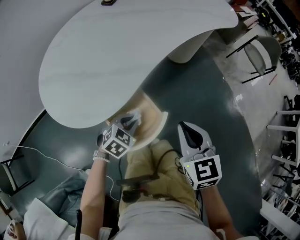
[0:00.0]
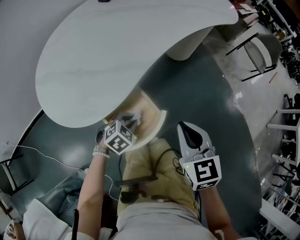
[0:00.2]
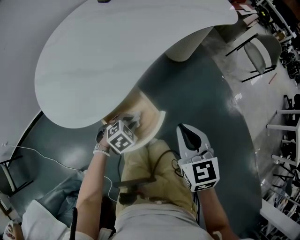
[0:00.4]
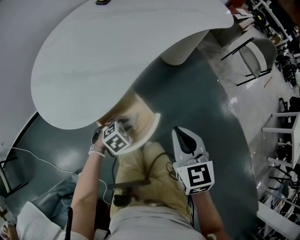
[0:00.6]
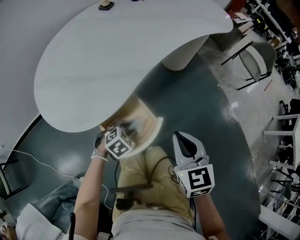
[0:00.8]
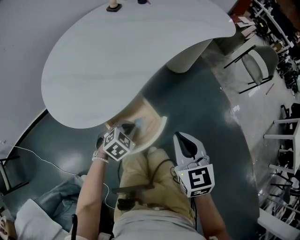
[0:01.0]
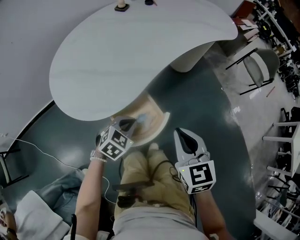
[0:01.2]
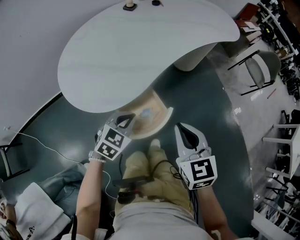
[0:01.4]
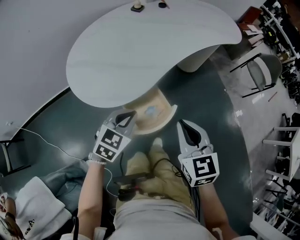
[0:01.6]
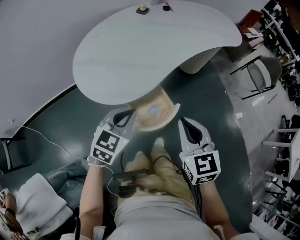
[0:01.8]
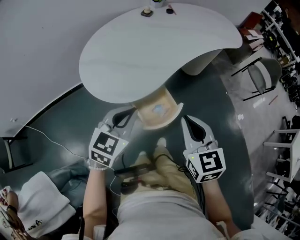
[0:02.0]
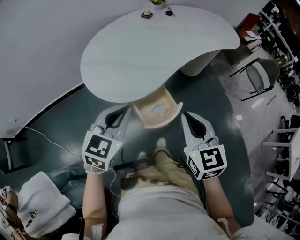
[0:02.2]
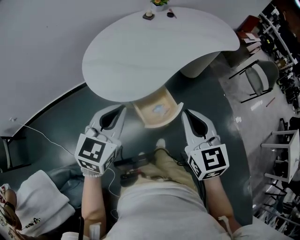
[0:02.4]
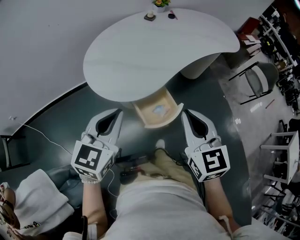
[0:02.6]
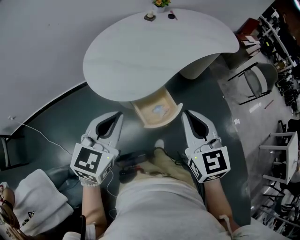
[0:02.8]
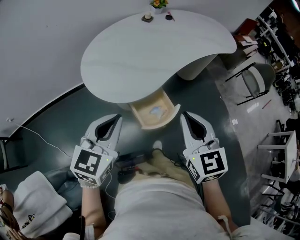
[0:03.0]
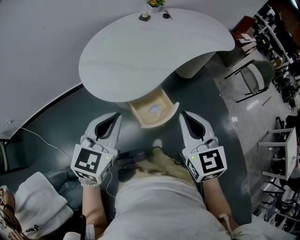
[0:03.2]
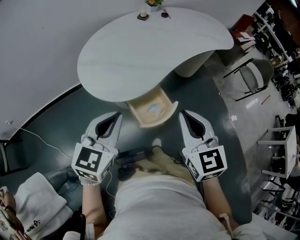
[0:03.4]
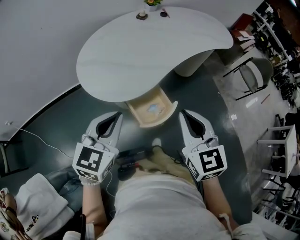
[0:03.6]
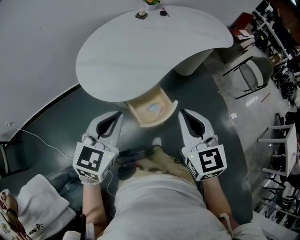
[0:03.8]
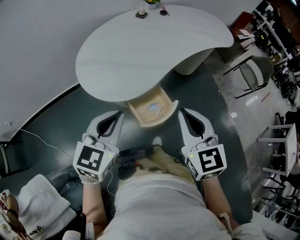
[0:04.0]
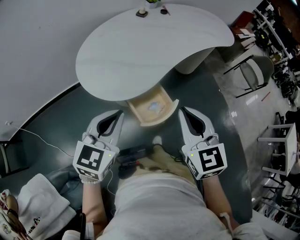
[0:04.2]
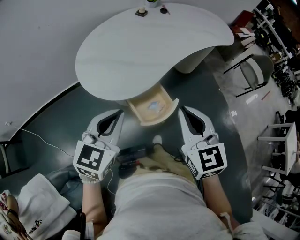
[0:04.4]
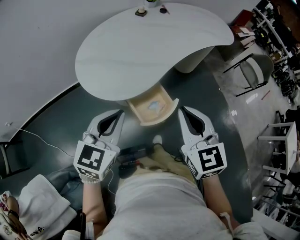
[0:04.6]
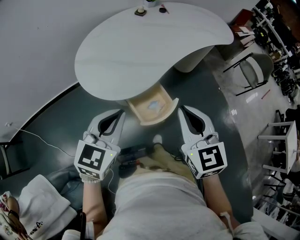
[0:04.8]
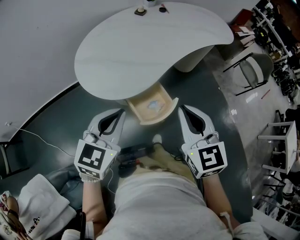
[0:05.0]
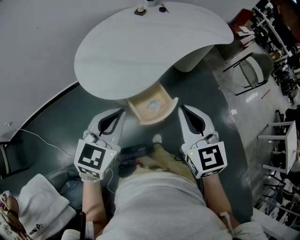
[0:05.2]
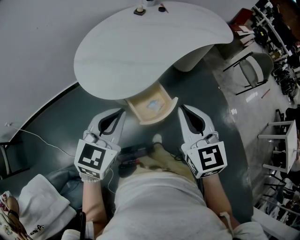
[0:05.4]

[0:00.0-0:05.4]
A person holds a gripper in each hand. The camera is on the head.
0:00.0 to 0:01.4: The right gripper shifts roughly 5 cm upward. The left gripper heads upward, covering some 10 cm.
0:01.4 to 0:02.8: The left gripper goes approximately 25 cm upward, to the left and backward, and swivels roughly 30 degrees, while the right gripper travels upward and to the left by about 15 cm.
0:02.8 to 0:04.0: The grippers move only a little.
0:04.0 to 0:05.4: The two grippers keep their place.

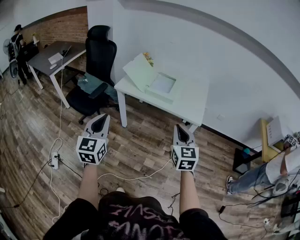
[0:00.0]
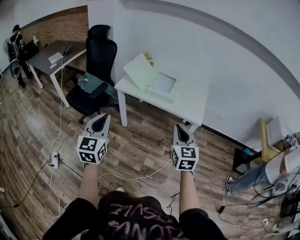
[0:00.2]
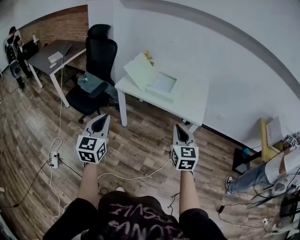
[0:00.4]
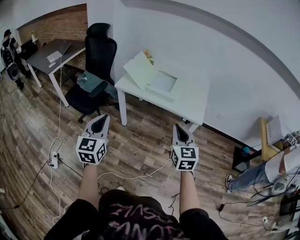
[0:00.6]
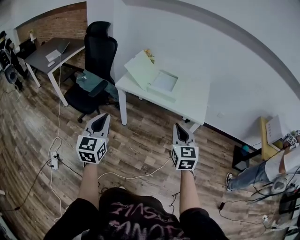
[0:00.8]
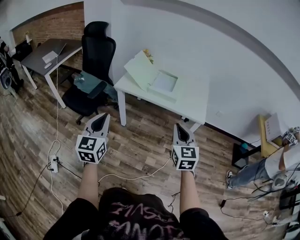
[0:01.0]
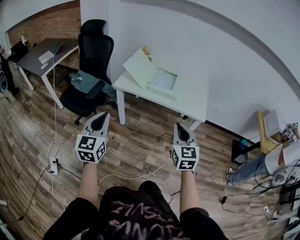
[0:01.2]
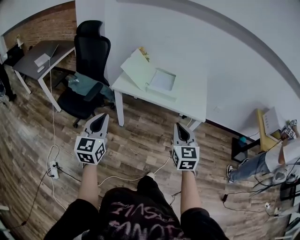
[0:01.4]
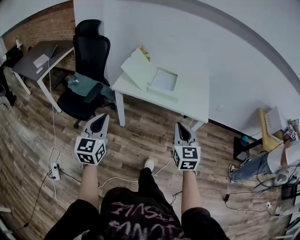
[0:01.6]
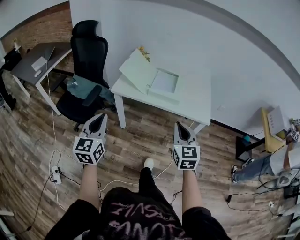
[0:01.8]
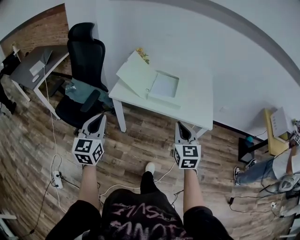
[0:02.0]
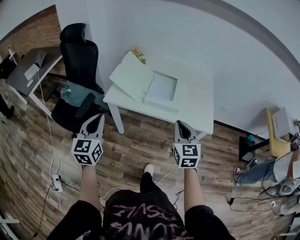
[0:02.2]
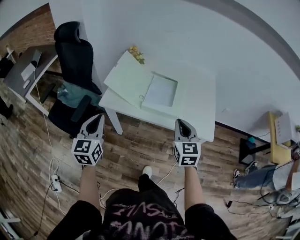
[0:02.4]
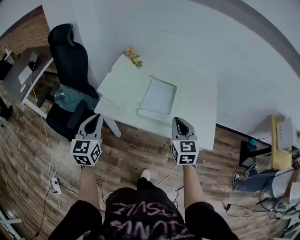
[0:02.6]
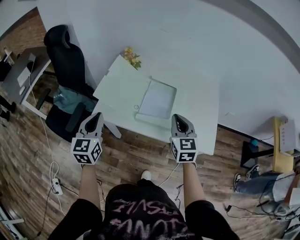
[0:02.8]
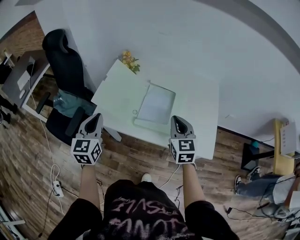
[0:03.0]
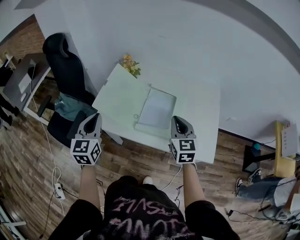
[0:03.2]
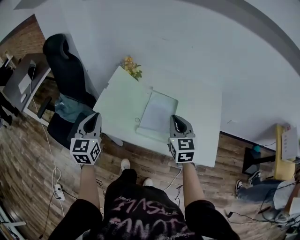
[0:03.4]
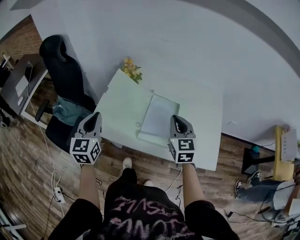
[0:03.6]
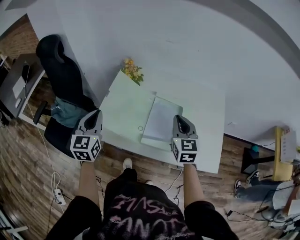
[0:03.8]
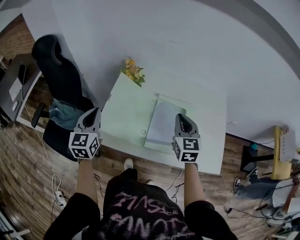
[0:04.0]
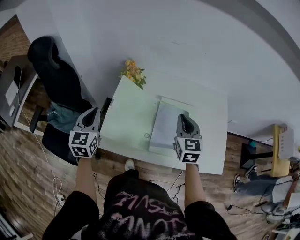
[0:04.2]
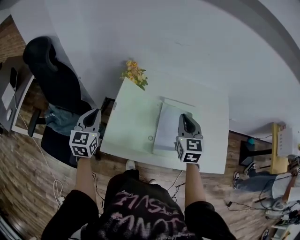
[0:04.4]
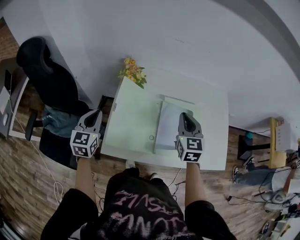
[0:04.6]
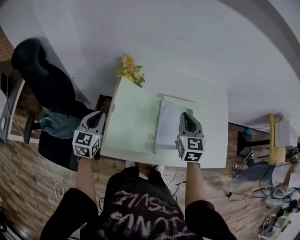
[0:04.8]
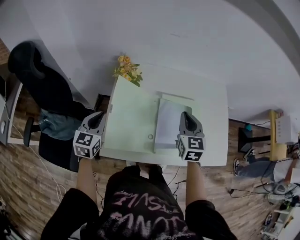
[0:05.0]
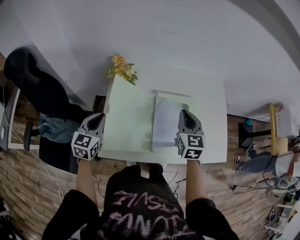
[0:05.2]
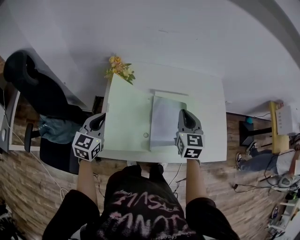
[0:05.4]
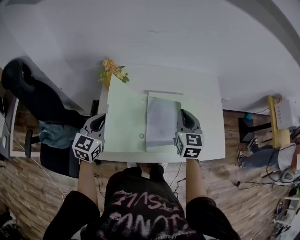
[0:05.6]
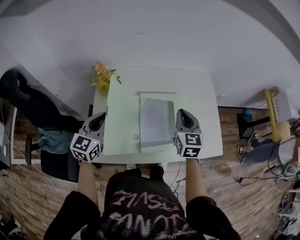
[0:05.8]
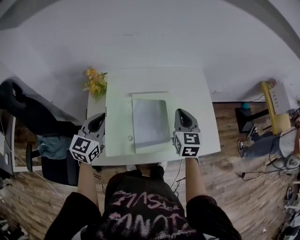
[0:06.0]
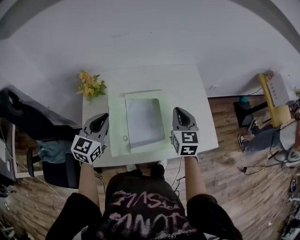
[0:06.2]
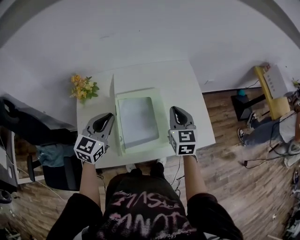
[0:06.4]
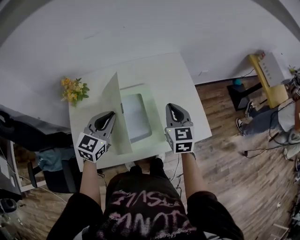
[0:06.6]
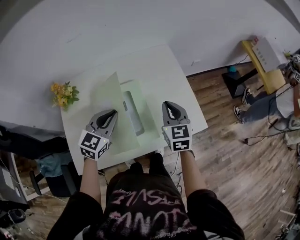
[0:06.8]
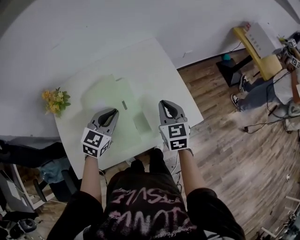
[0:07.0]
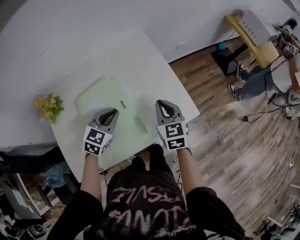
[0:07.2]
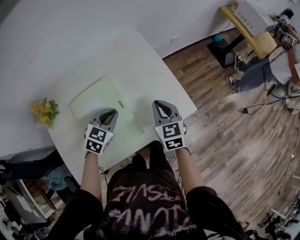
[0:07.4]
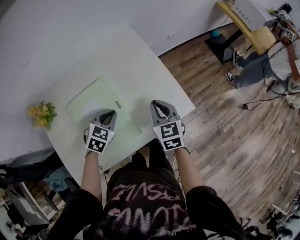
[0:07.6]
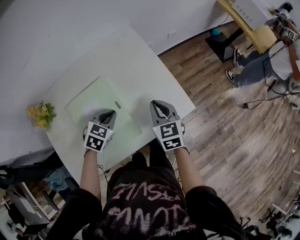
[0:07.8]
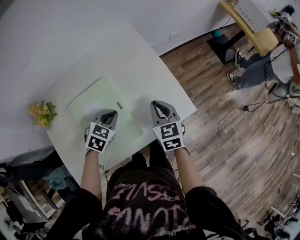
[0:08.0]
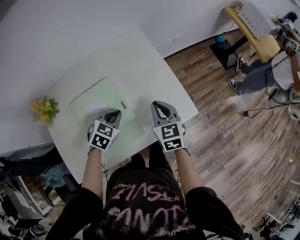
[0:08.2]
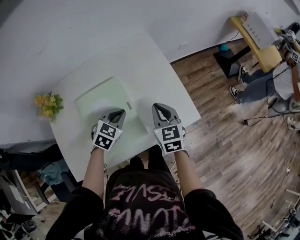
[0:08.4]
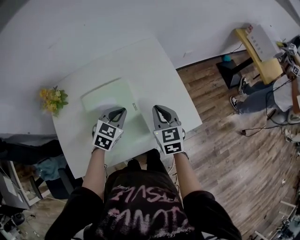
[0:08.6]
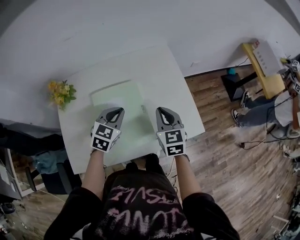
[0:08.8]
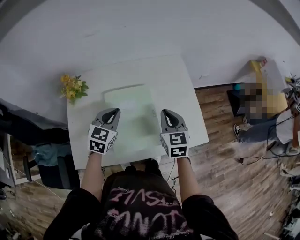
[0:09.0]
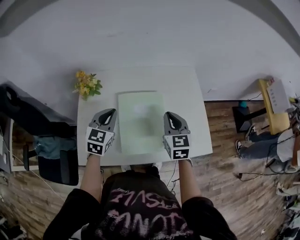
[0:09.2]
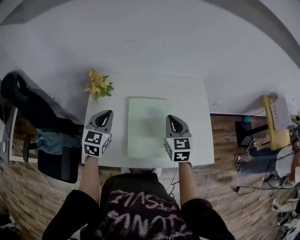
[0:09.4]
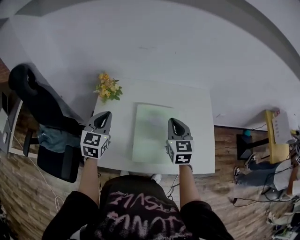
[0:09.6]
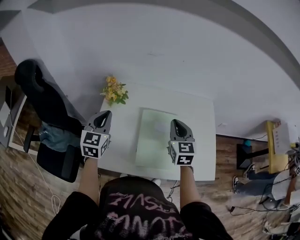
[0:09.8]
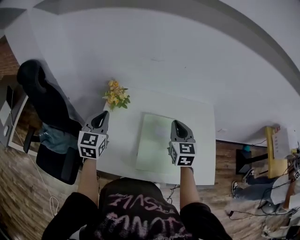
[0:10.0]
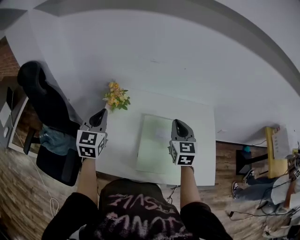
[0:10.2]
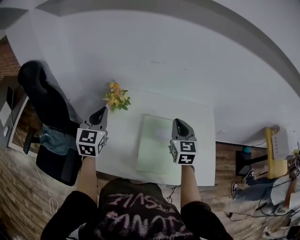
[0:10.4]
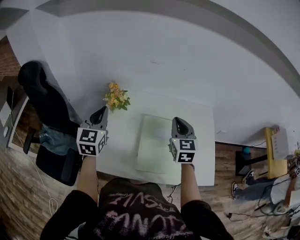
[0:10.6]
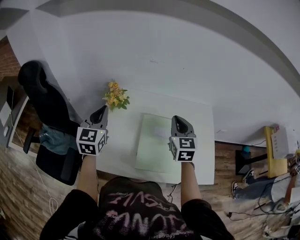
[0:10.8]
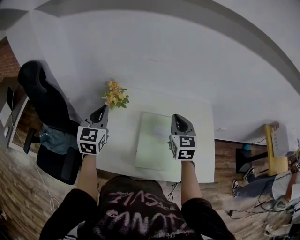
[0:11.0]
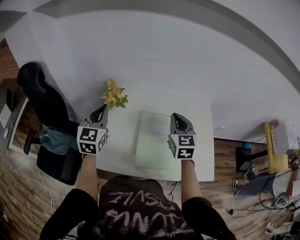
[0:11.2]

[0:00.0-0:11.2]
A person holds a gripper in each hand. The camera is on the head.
0:00.0 to 0:01.6: The right gripper is displaced to the left and forward by about 10 cm; the left gripper moves forward and to the left, approximately 15 cm.
0:01.6 to 0:03.2: Both grippers move forward, about 40 cm.
0:03.2 to 0:04.8: The left gripper heads forward, to the left and downward, covering some 25 cm, and rotates approximately 20 degrees; the right gripper shifts approximately 20 cm forward and to the left.
0:04.8 to 0:06.4: Both grippers travel together to the right, about 25 cm. The left gripper turns by roughly 30 degrees.
0:06.4 to 0:08.0: The left gripper moves to the right, downward and forward, roughly 30 cm, and tips its fingers downward by some 40 degrees, while the right gripper shifts approximately 20 cm to the right and downward.
0:08.0 to 0:09.6: The left gripper shifts by approximately 40 cm, and angles its fingers upward, by approximately 30 degrees; the right gripper moves some 25 cm, and rotates approximately 20 degrees.
0:09.6 to 0:11.2: The two grippers go about 5 cm upward.

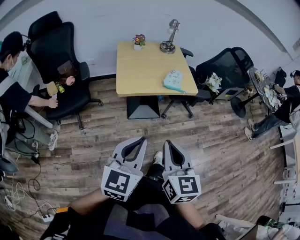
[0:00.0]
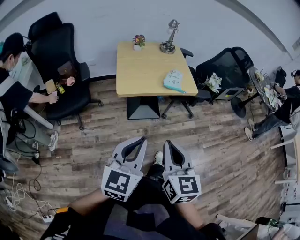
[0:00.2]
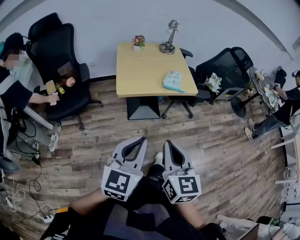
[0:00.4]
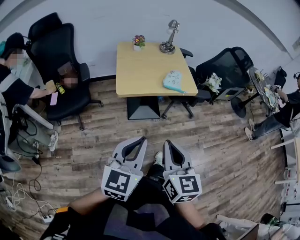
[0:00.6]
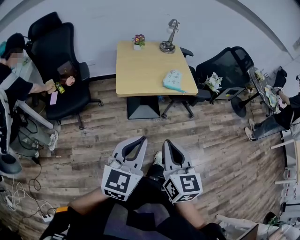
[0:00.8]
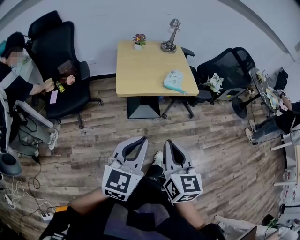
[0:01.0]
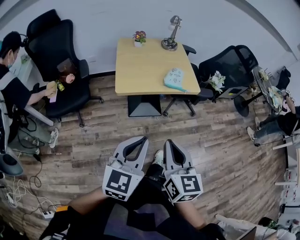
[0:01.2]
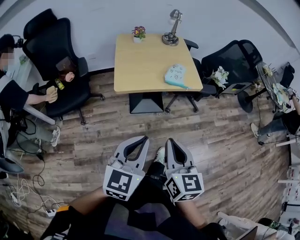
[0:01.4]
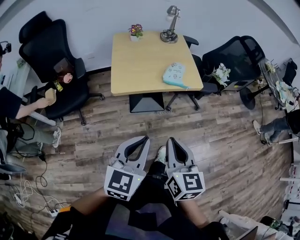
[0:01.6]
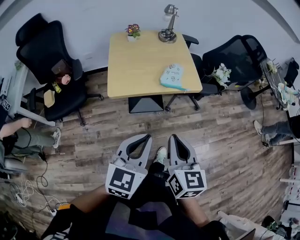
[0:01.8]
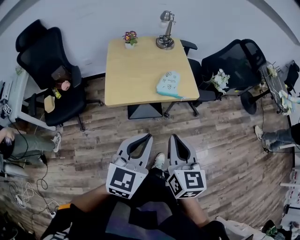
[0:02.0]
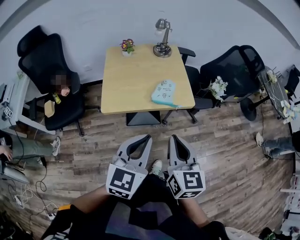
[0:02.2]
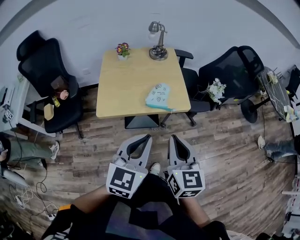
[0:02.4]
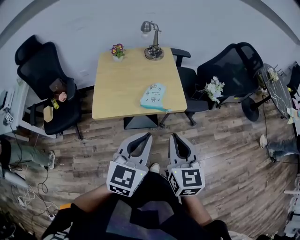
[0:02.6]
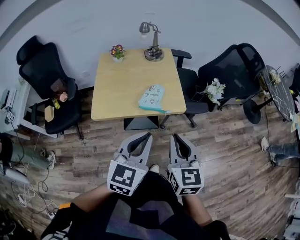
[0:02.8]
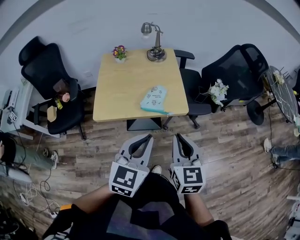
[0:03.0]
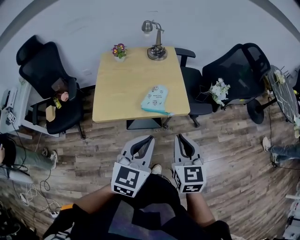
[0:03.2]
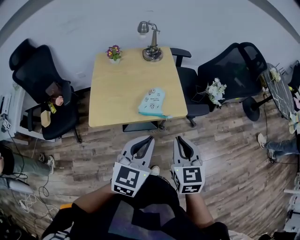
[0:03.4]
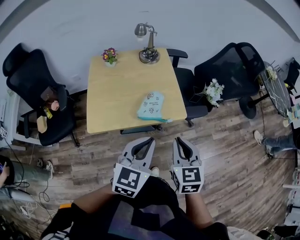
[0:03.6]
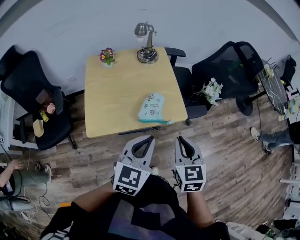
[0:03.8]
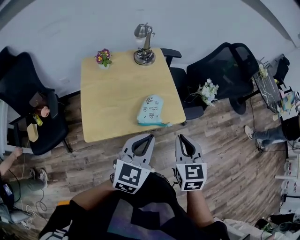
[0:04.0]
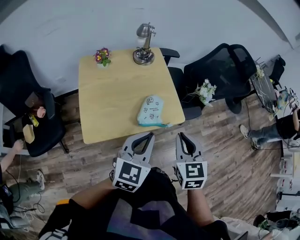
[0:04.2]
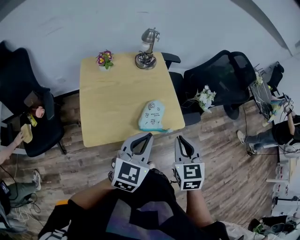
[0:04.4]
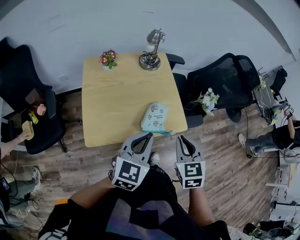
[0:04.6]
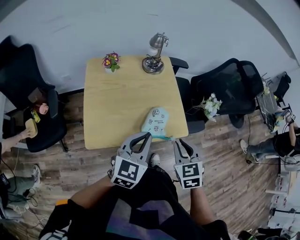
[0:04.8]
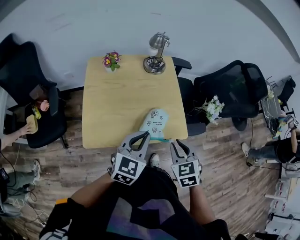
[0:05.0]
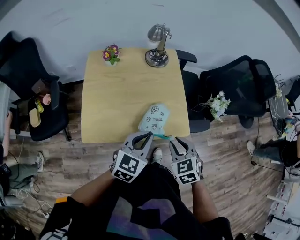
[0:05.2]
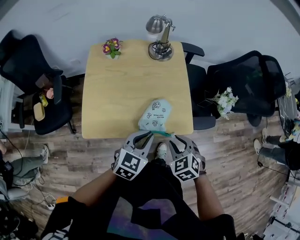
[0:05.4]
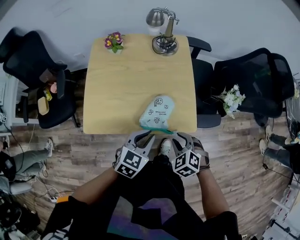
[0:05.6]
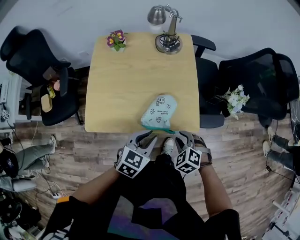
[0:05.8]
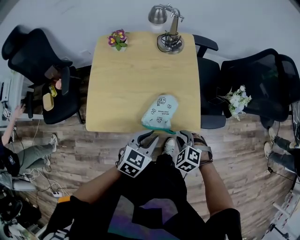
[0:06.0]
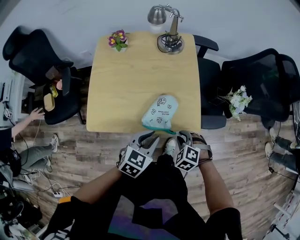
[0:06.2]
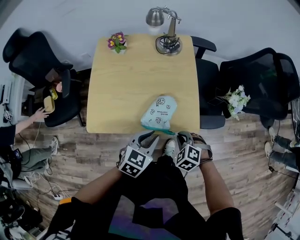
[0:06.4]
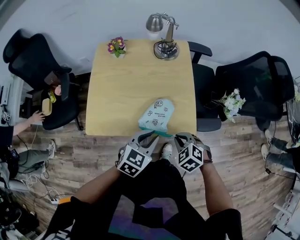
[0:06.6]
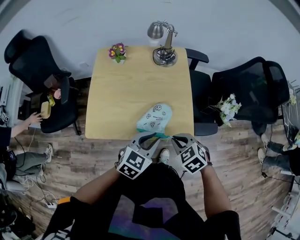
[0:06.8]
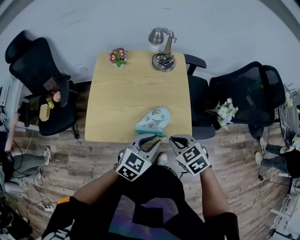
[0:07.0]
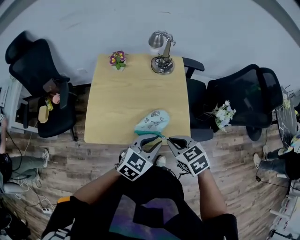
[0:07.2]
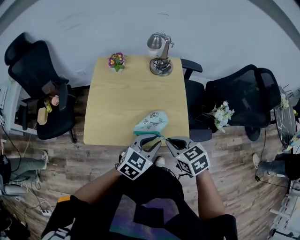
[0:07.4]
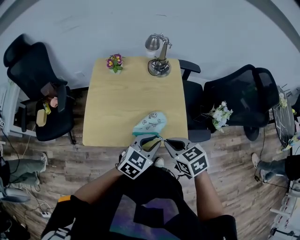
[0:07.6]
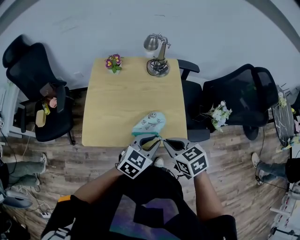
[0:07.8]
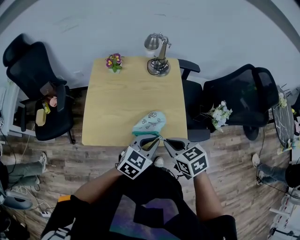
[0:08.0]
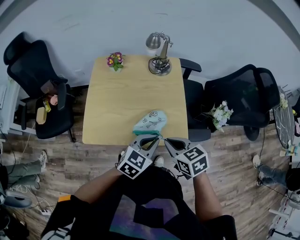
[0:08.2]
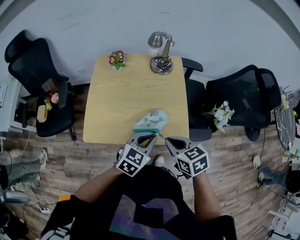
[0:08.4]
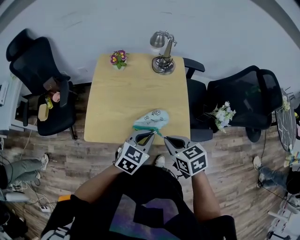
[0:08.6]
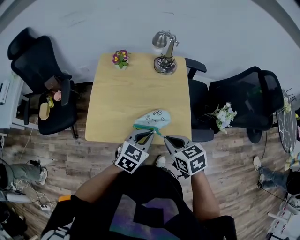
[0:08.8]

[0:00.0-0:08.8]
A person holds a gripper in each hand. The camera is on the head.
0:00.0 to 0:01.4: The left gripper shifts by approximately 5 cm; the right gripper moves some 5 cm.
0:01.4 to 0:03.0: Both grippers travel together forward and to the right, some 30 cm.
0:03.0 to 0:04.4: The two grippers go approximately 15 cm forward and to the left. The right gripper swivels some 20 degrees.
0:04.4 to 0:05.8: Both grippers travel together downward, roughly 20 cm. The right gripper points its fingers approximately 30 degrees further downward, and opens its fingers. Meanwhile the left gripper swivels approximately 20 degrees.
0:05.8 to 0:07.4: The right gripper heads upward, covering roughly 15 cm, rotates roughly 40 degrees, and closes. Meanwhile the left gripper is displaced upward by about 5 cm.
0:07.4 to 0:08.8: There are only small adjustments of the grippers.
